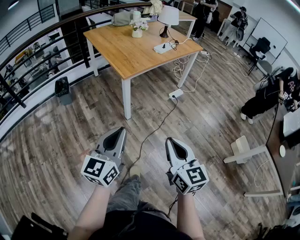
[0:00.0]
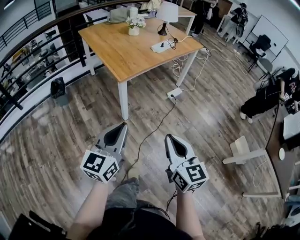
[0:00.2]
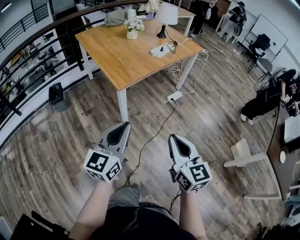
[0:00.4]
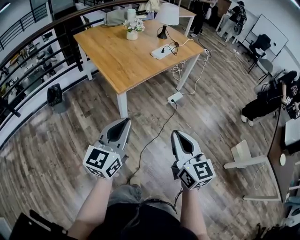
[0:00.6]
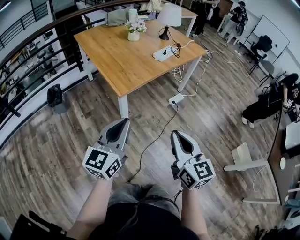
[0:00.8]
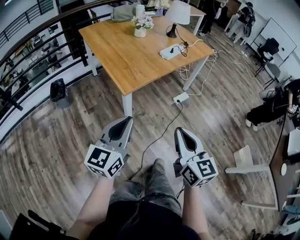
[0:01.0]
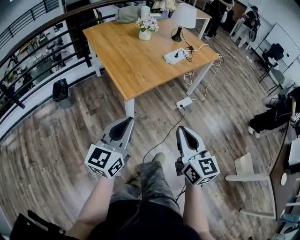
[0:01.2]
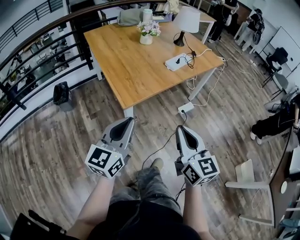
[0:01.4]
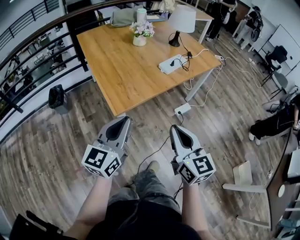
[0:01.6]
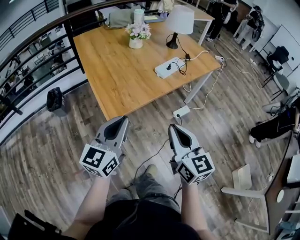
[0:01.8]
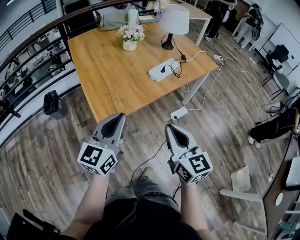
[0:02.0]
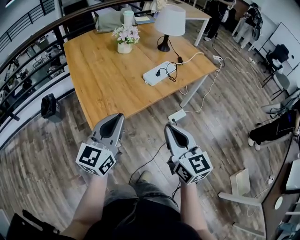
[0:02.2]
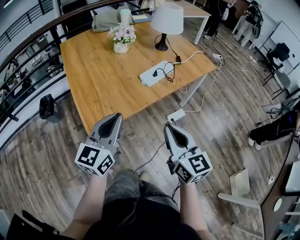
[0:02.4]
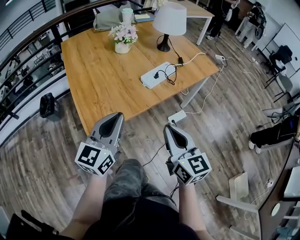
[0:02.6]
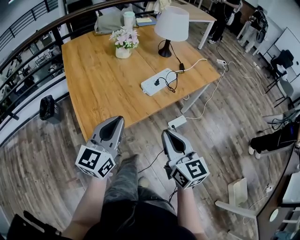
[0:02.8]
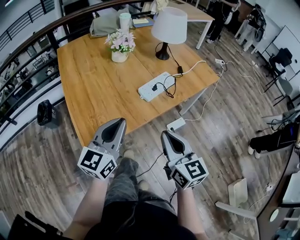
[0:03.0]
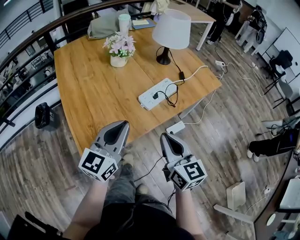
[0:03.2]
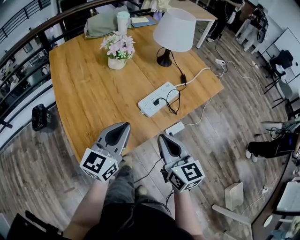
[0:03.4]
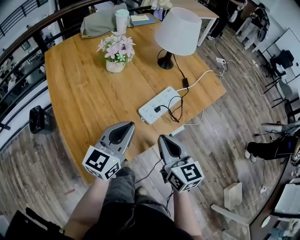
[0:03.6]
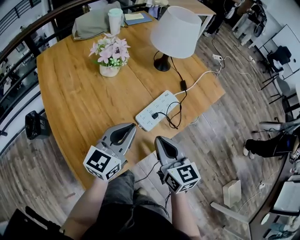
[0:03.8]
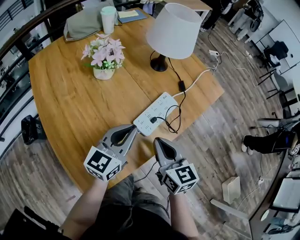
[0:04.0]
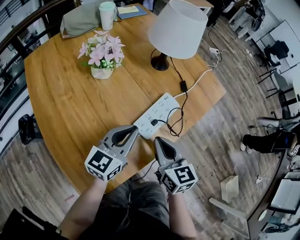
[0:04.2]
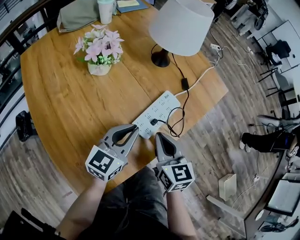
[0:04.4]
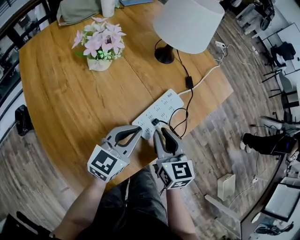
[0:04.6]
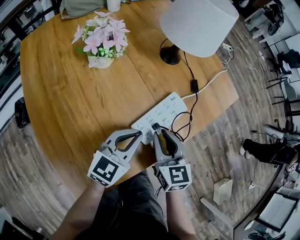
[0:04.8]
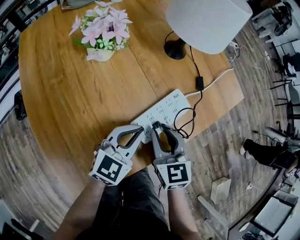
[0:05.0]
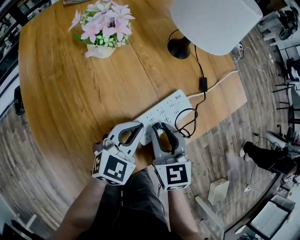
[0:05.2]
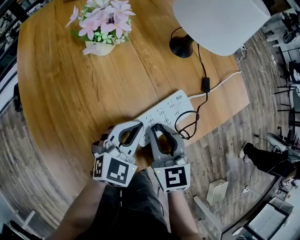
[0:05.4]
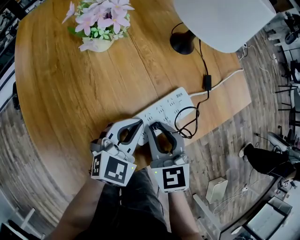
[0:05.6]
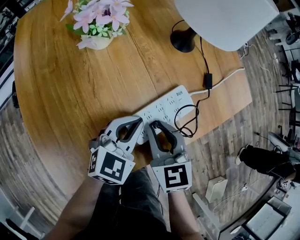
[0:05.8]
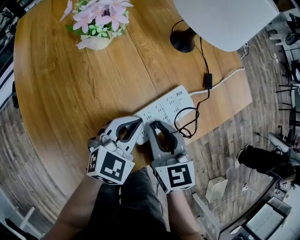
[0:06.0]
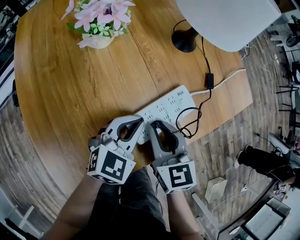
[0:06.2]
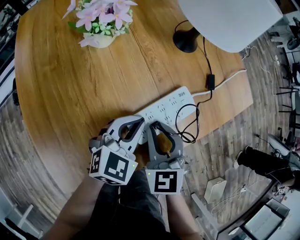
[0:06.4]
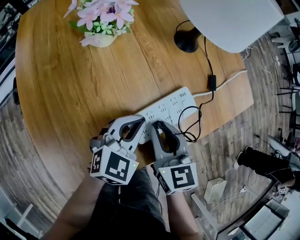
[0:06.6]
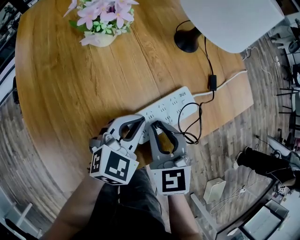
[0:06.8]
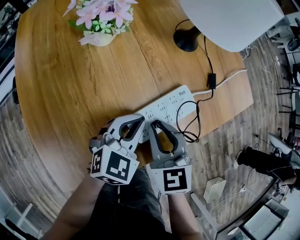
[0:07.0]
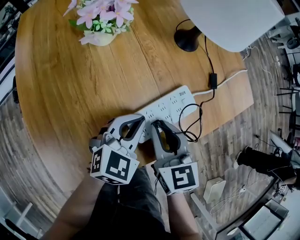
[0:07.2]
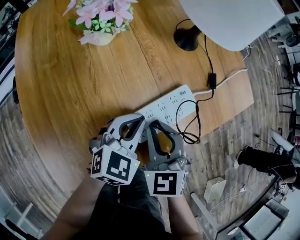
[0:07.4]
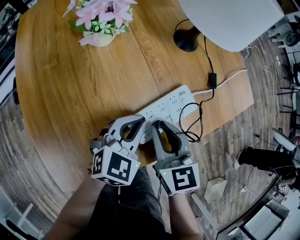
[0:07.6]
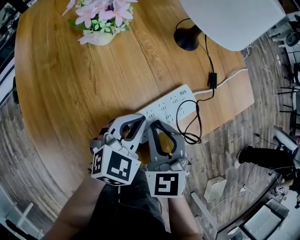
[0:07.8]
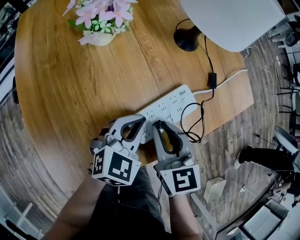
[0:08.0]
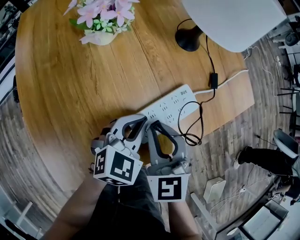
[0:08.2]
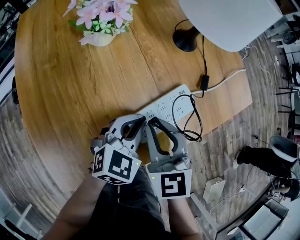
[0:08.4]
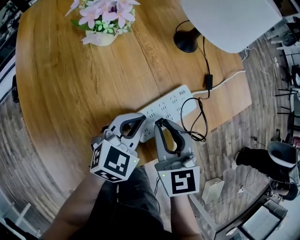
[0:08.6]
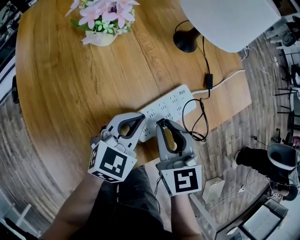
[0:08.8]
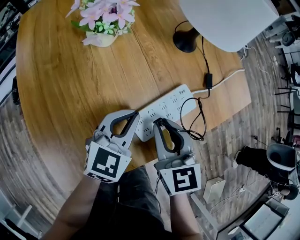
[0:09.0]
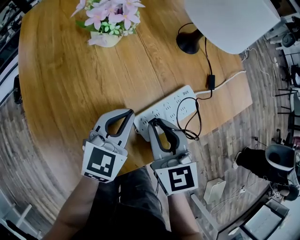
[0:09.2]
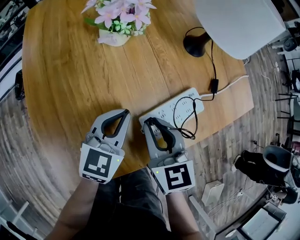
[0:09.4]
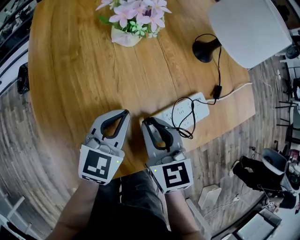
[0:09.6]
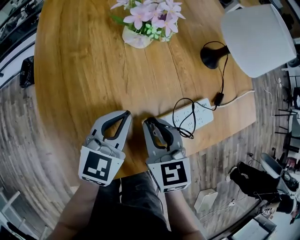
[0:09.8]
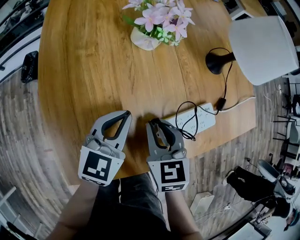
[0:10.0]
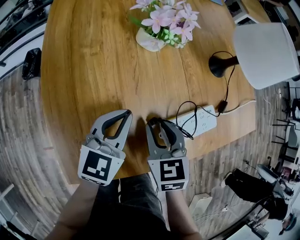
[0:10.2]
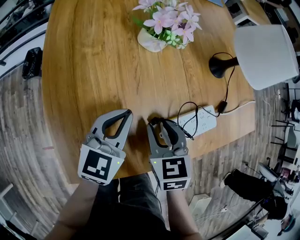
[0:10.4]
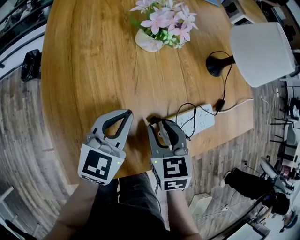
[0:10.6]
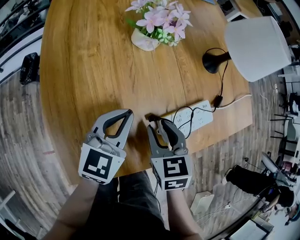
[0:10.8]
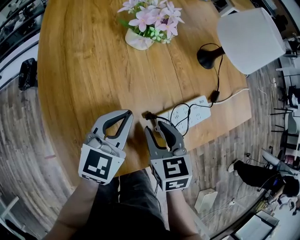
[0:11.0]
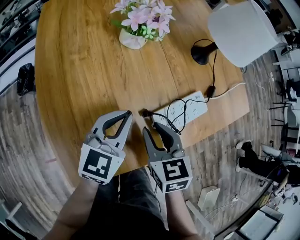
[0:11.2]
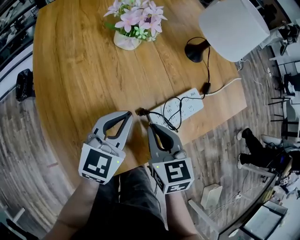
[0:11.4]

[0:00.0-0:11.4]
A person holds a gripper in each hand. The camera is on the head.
0:00.0 to 0:01.4: Both grippers travel together forward, some 30 cm.
0:01.4 to 0:02.8: The grippers both shift forward and to the right by some 25 cm.
0:02.8 to 0:04.2: The grippers both shift forward by roughly 25 cm. The left gripper rotates about 20 degrees.
0:04.2 to 0:05.6: The left gripper travels downward by roughly 10 cm, and swivels about 30 degrees; the right gripper is displaced forward and downward by roughly 10 cm, changes its angle by some 30 degrees, and opens up.
0:05.6 to 0:07.2: The grippers make only small movements.
0:08.6 to 0:10.0: Both grippers travel together to the left, approximately 15 cm. The left gripper changes its angle by about 30 degrees.
0:10.0 to 0:11.4: The right gripper shifts by about 5 cm.

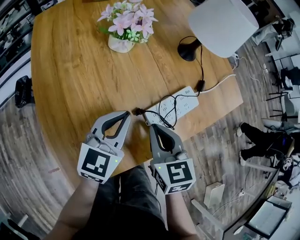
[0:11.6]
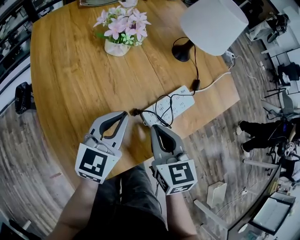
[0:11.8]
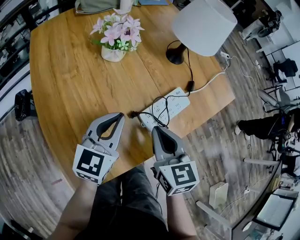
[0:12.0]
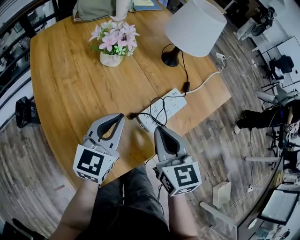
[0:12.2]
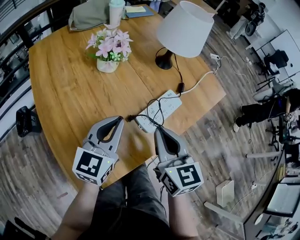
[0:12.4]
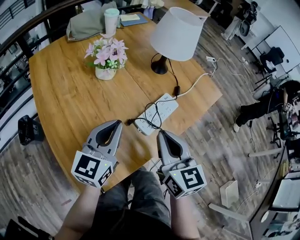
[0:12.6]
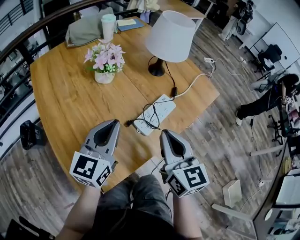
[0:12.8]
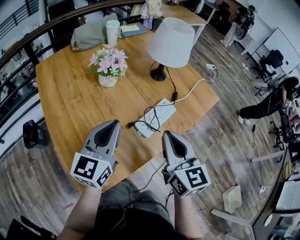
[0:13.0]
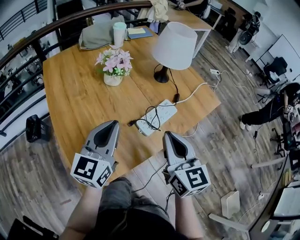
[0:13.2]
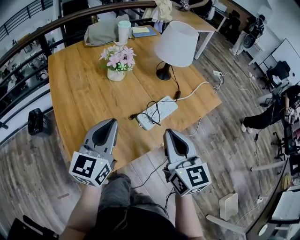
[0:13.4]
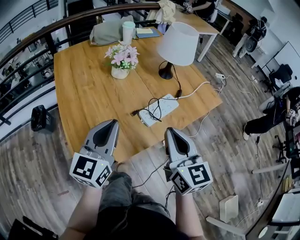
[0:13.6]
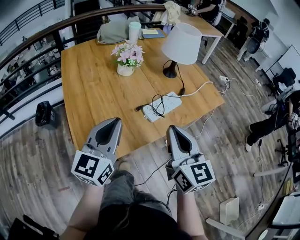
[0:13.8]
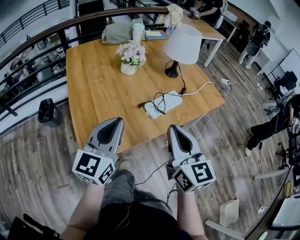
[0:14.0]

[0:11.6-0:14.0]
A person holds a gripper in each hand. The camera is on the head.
0:11.6 to 0:12.8: The left gripper goes about 10 cm upward. Meanwhile the right gripper is displaced upward and to the right by approximately 15 cm, and changes its angle by some 20 degrees.
0:12.8 to 0:14.0: Both grippers move backward and upward, approximately 15 cm.

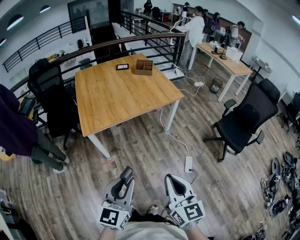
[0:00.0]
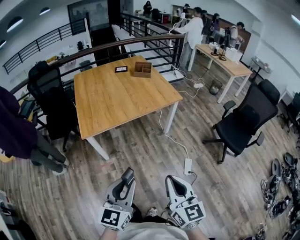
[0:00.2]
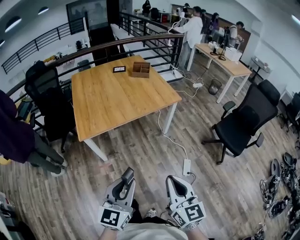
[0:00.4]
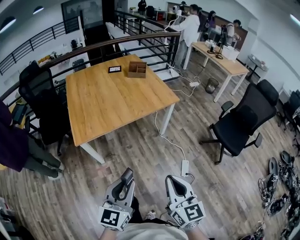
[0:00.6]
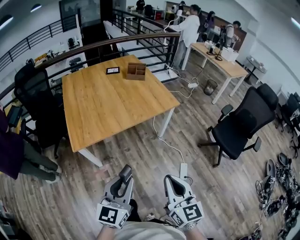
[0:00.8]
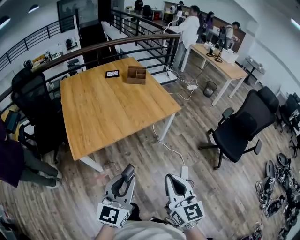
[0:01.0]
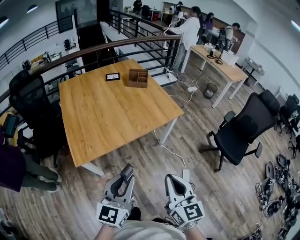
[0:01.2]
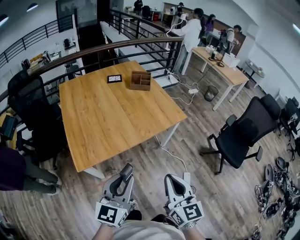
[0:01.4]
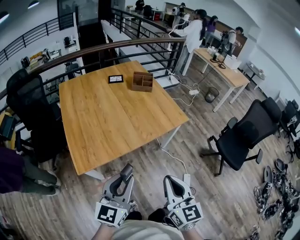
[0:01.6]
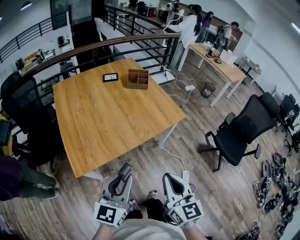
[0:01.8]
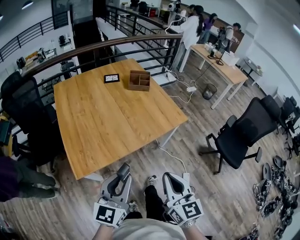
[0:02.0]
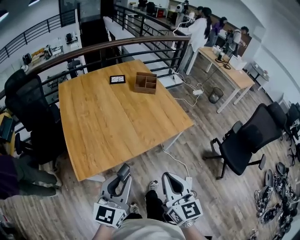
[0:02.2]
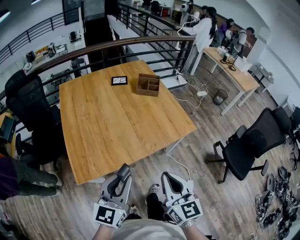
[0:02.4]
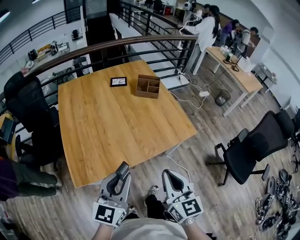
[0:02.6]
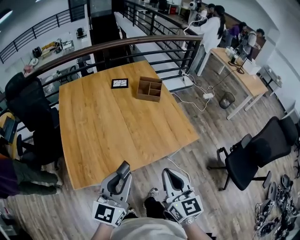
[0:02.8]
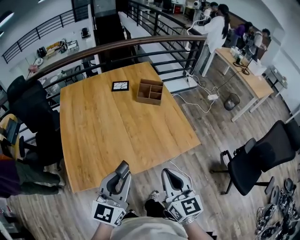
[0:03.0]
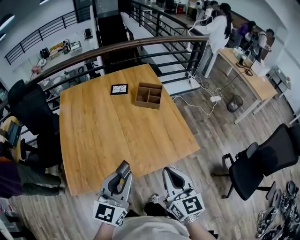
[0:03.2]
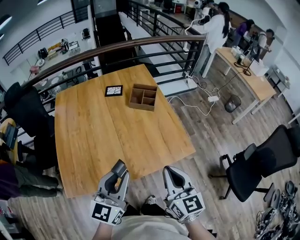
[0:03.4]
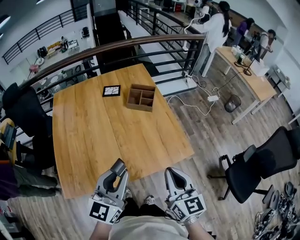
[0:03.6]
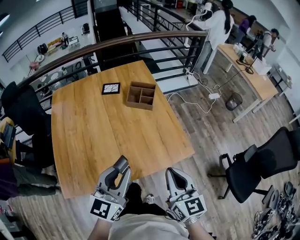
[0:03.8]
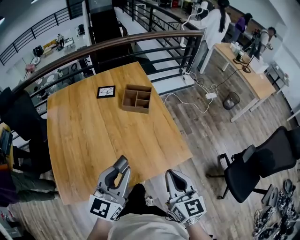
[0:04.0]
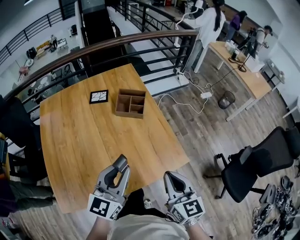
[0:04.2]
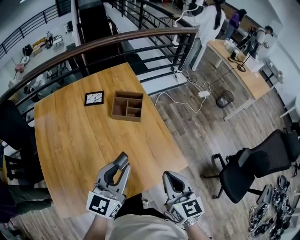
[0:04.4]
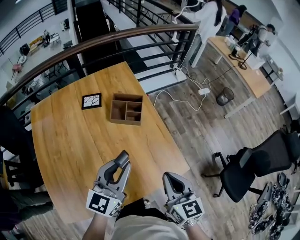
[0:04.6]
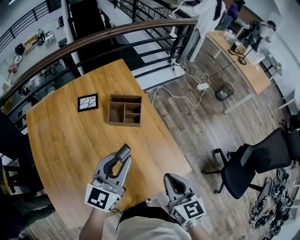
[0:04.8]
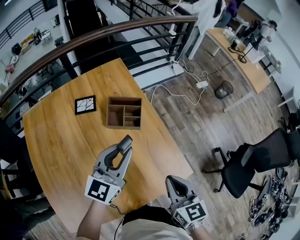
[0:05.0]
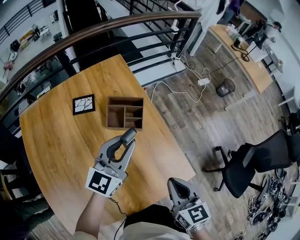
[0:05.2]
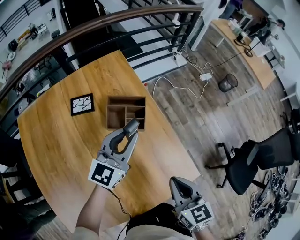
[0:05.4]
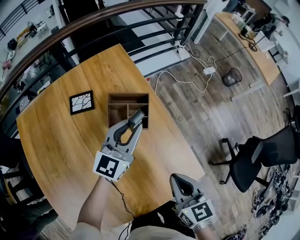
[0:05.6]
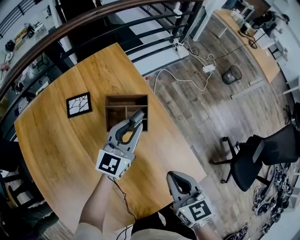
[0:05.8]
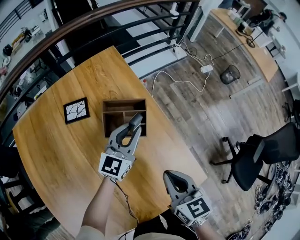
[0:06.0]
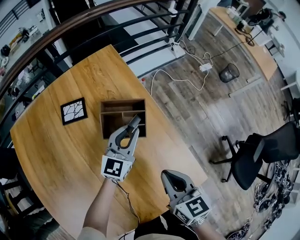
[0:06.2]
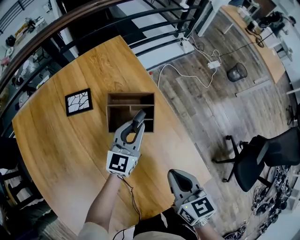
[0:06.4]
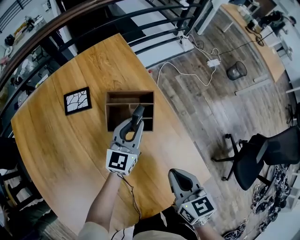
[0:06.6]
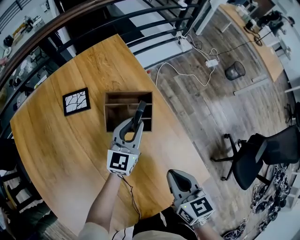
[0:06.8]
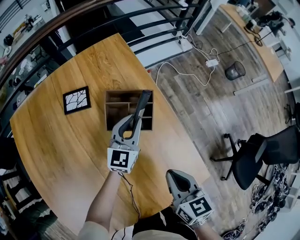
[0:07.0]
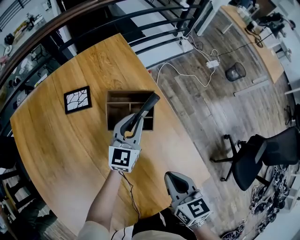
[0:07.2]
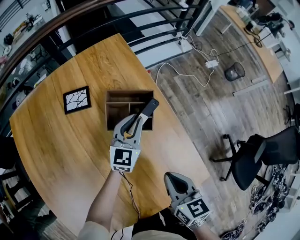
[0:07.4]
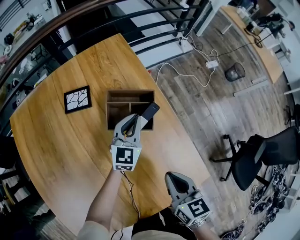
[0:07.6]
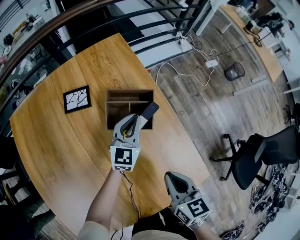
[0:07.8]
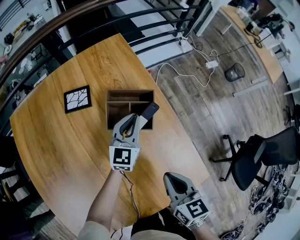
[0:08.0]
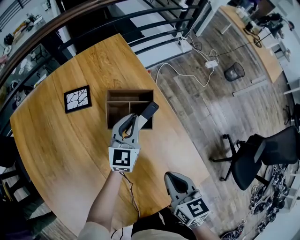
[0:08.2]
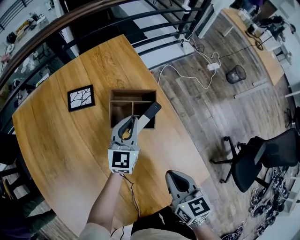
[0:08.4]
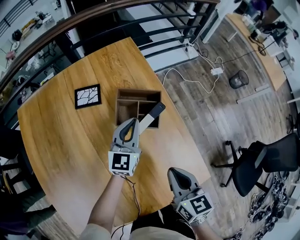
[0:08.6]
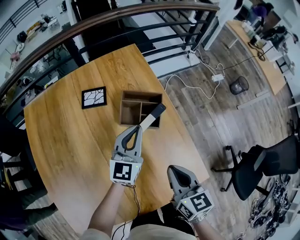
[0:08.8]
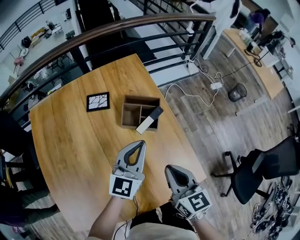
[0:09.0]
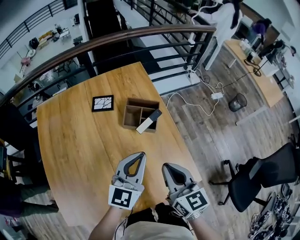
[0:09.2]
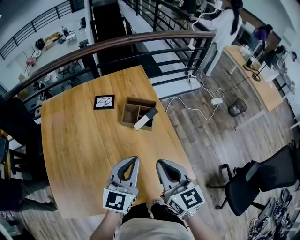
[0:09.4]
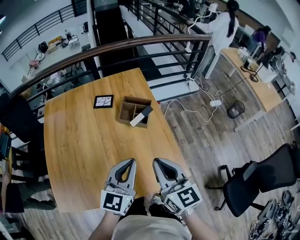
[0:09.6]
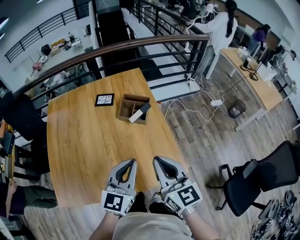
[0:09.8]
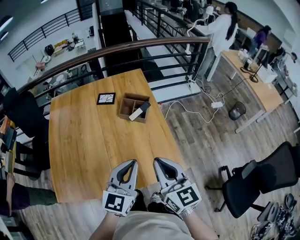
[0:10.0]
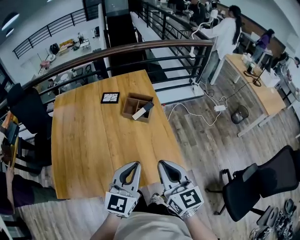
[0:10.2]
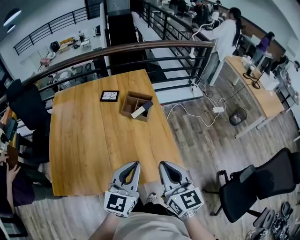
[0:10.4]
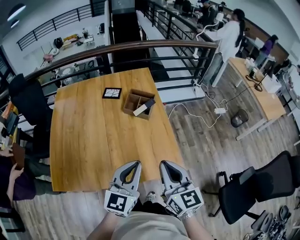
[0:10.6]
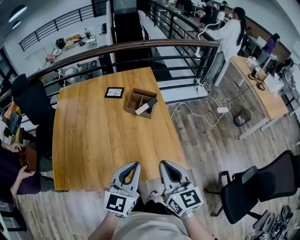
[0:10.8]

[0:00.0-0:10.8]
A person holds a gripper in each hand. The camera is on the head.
0:00.0 to 0:01.6: Both grippers move forward, some 35 cm.
0:01.6 to 0:03.0: Both grippers travel together forward, some 30 cm.
0:03.0 to 0:04.6: Both grippers move forward, some 30 cm.
0:04.6 to 0:06.2: The right gripper moves forward and downward, some 25 cm. The left gripper goes approximately 40 cm forward and downward.
0:06.2 to 0:07.8: The grippers move only a little.
0:07.8 to 0:09.2: The left gripper goes approximately 35 cm backward and upward. Meanwhile the right gripper goes approximately 15 cm upward and backward, and swivels approximately 20 degrees.
0:09.2 to 0:10.8: Both grippers move backward, roughly 25 cm.
